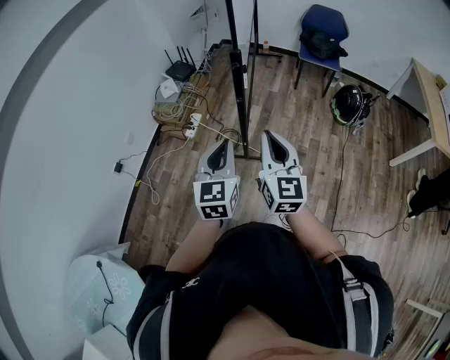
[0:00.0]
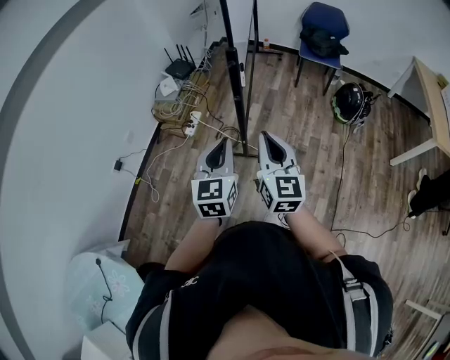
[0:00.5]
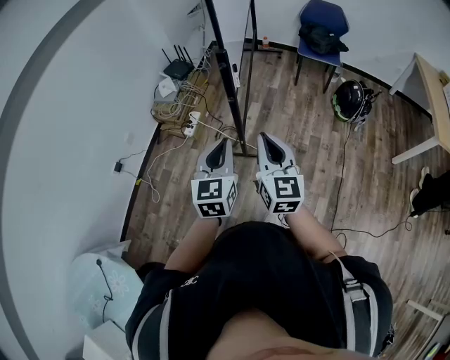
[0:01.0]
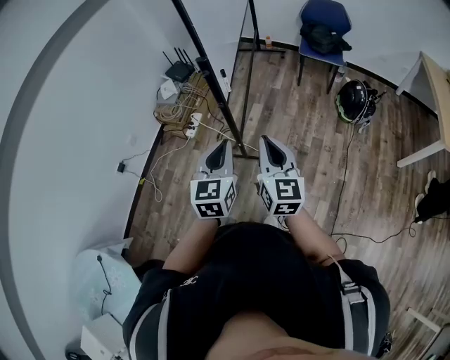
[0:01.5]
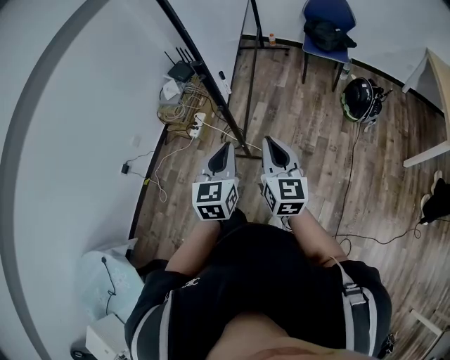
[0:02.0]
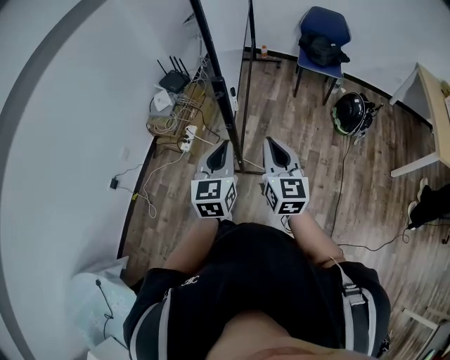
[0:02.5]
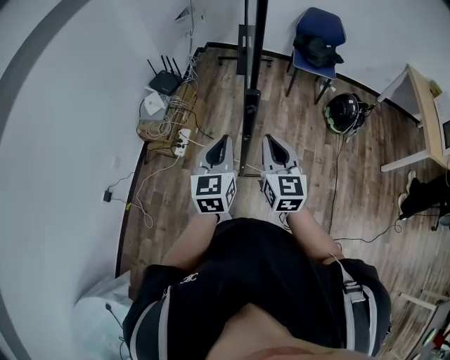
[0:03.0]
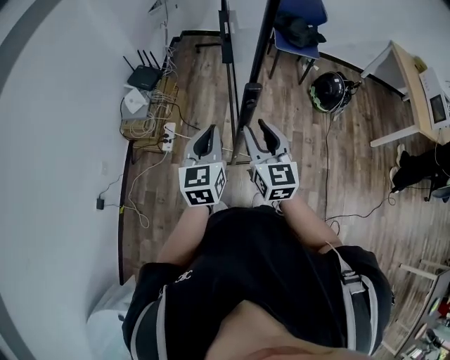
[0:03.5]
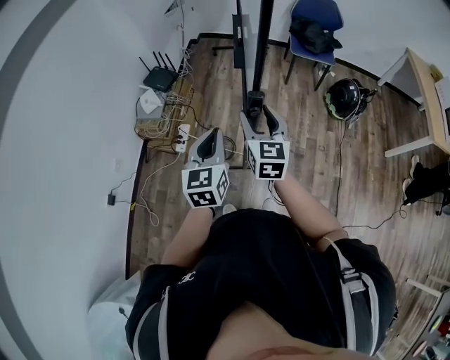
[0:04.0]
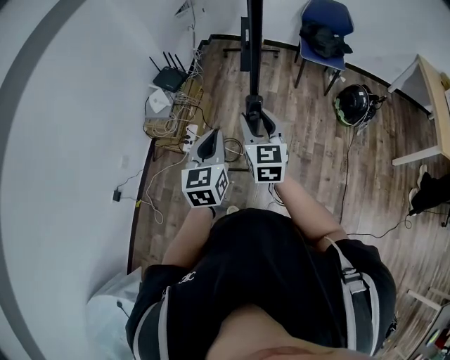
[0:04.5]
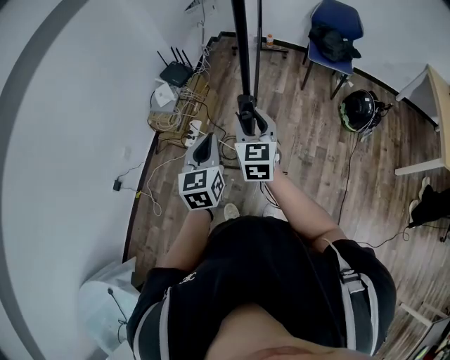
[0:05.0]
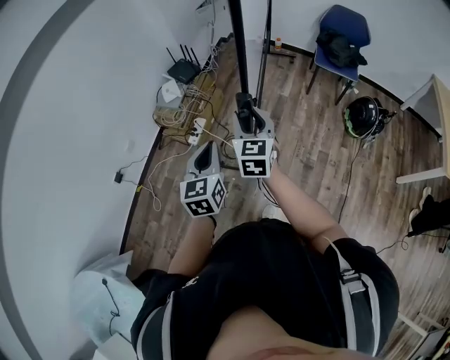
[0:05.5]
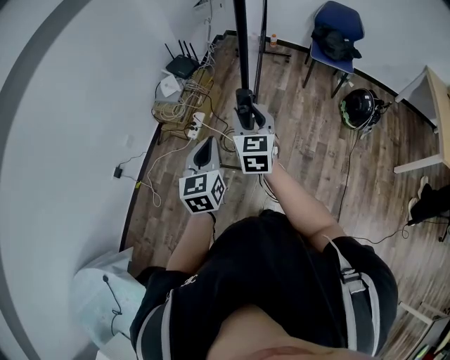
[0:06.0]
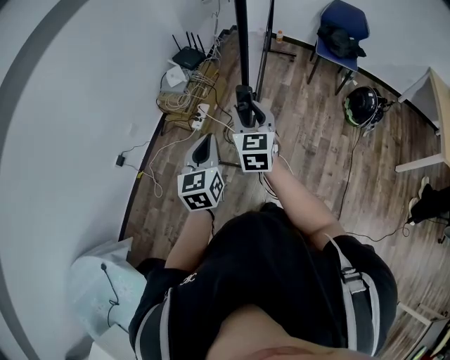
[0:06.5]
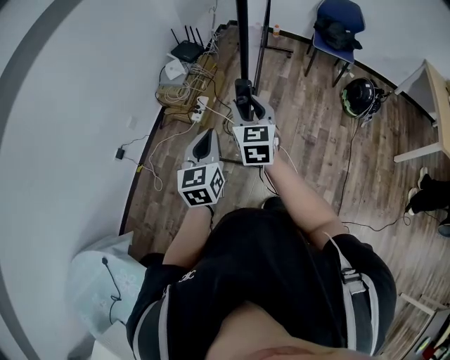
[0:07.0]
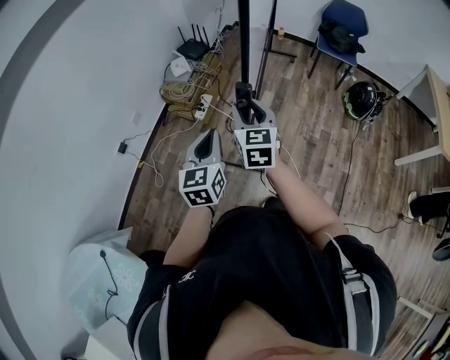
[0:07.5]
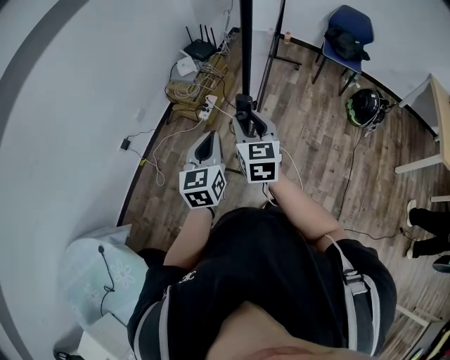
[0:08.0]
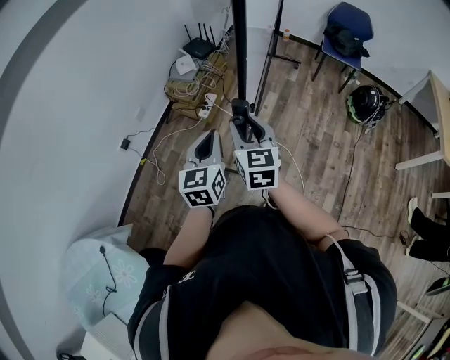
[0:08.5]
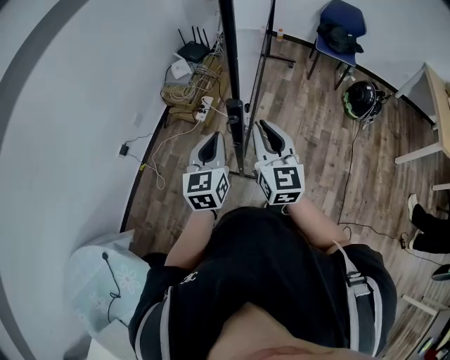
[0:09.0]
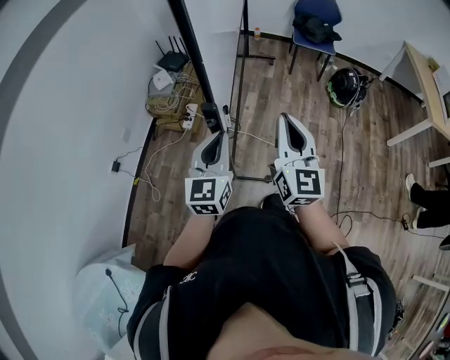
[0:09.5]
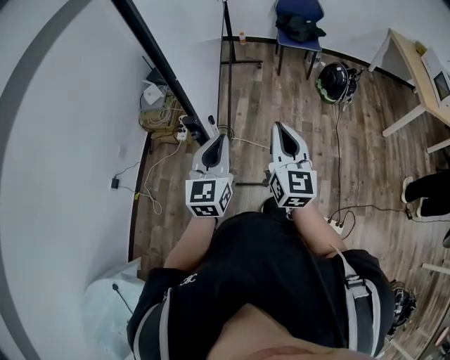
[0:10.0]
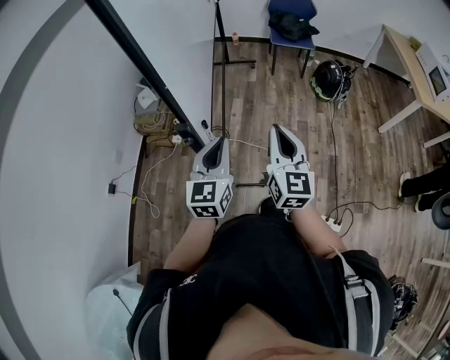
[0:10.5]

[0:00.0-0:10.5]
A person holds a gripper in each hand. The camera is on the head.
0:00.0 to 0:02.0: Both grippers travel together to the right, approximately 10 cm.
0:02.0 to 0:04.0: The grippers both shift forward and to the left by approximately 25 cm. The right gripper opens its fingers.
0:04.0 to 0:06.5: The left gripper heads backward, covering about 15 cm. The right gripper heads backward and to the left, covering approximately 15 cm.
0:06.5 to 0:08.5: The right gripper travels backward and to the left by roughly 15 cm. Meanwhile the left gripper is displaced backward and to the left by roughly 10 cm.
0:08.5 to 0:10.5: Both grippers move to the right, roughly 20 cm. The left gripper changes its angle by approximately 20 degrees. The right gripper turns by some 30 degrees, and closes up.

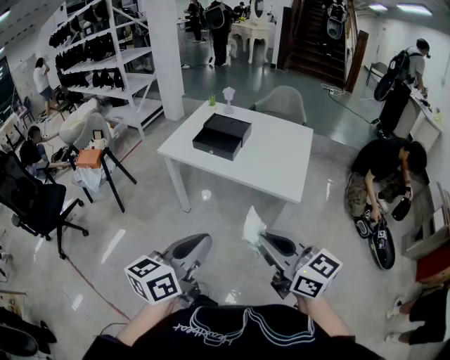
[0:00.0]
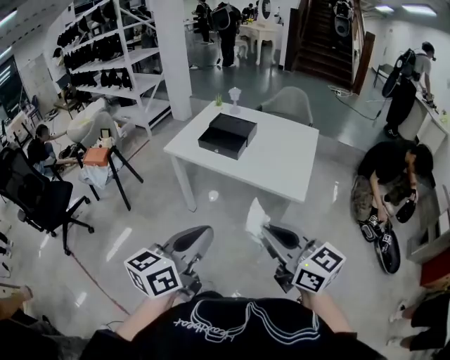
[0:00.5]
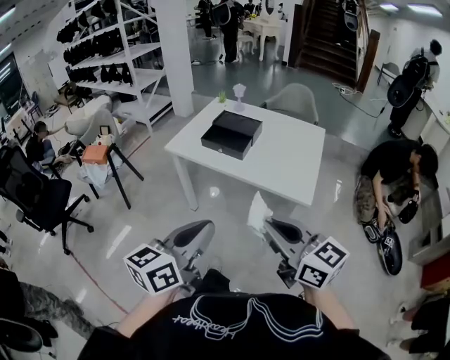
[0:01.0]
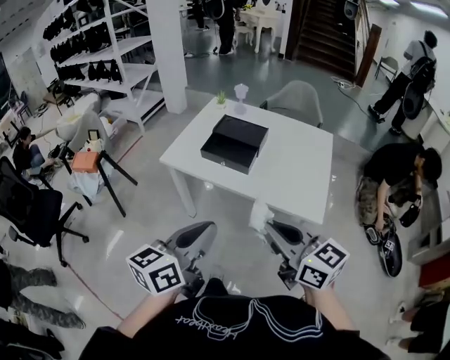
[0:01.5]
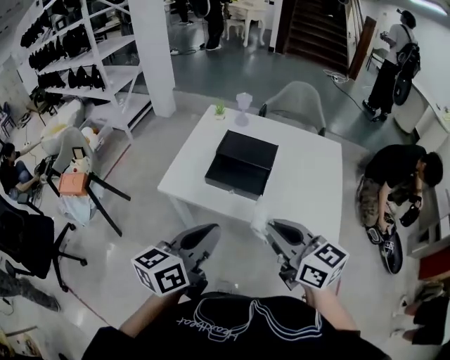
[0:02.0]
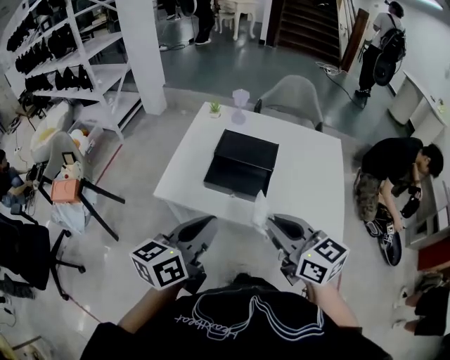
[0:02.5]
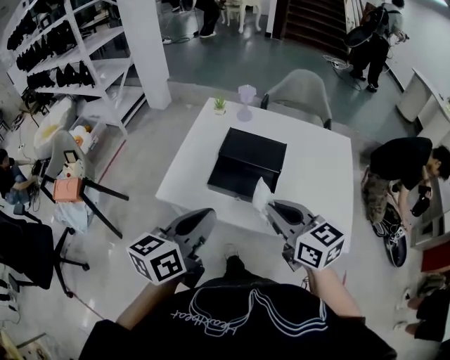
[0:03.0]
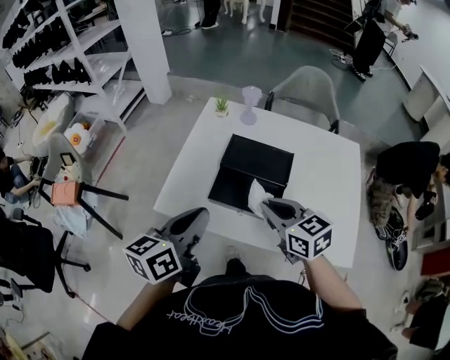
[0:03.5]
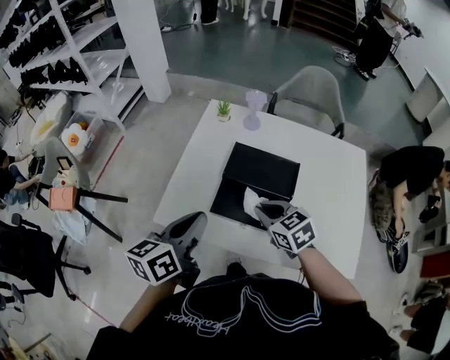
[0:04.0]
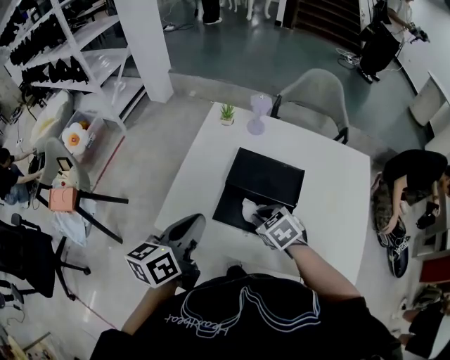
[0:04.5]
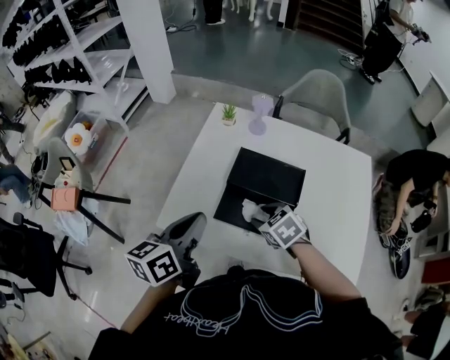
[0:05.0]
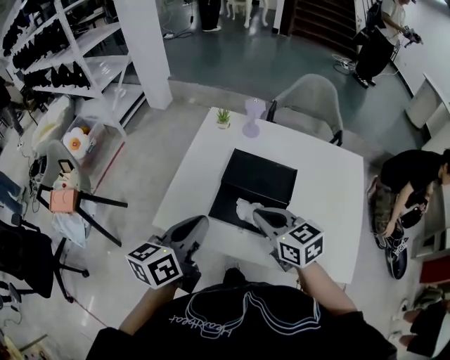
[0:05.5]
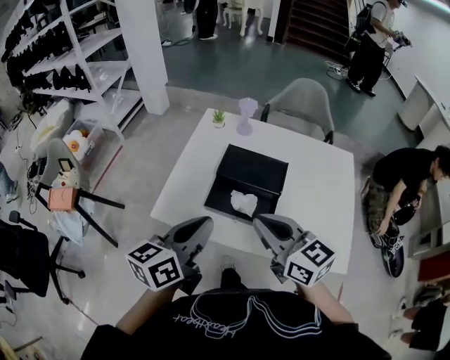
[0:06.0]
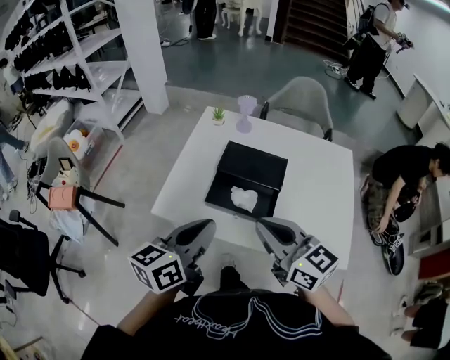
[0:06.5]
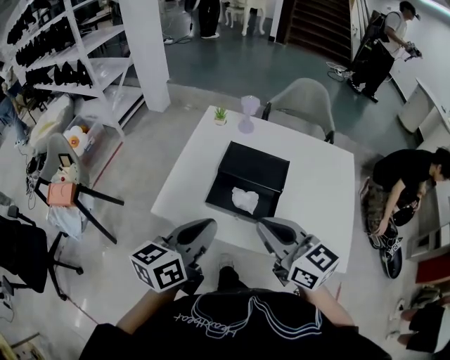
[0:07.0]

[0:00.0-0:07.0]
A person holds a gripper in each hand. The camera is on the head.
0:00.0 to 0:02.0: The grippers both shift forward by roughly 30 cm.
0:02.0 to 0:03.5: The right gripper heads forward and downward, covering some 20 cm; the left gripper is displaced forward by some 15 cm.
0:03.5 to 0:05.0: The left gripper shifts some 5 cm forward, while the right gripper moves downward and forward, some 15 cm, tips its fingers downward by roughly 30 degrees, and opens its fingers.
0:05.0 to 0:07.0: The left gripper shifts about 10 cm backward. Meanwhile the right gripper goes roughly 25 cm upward and backward, tips its fingers upward by some 50 degrees, and closes its fingers.

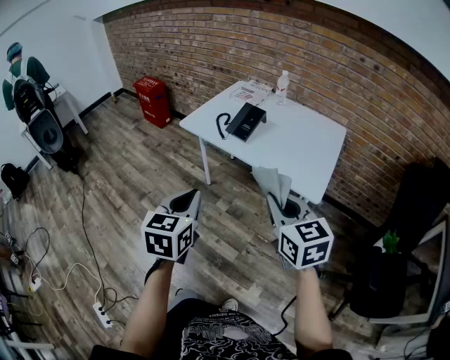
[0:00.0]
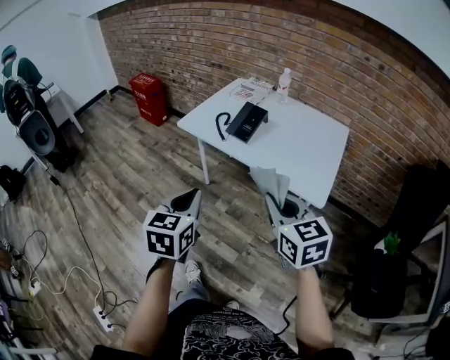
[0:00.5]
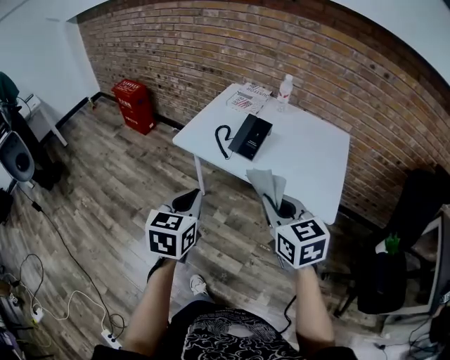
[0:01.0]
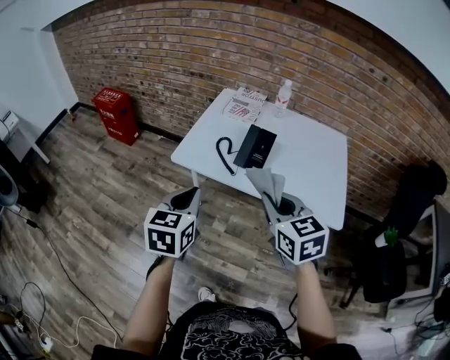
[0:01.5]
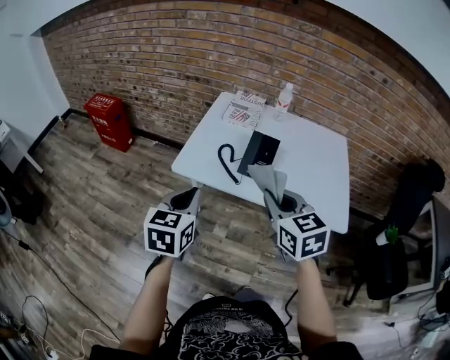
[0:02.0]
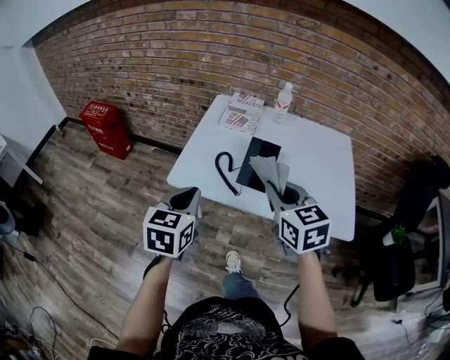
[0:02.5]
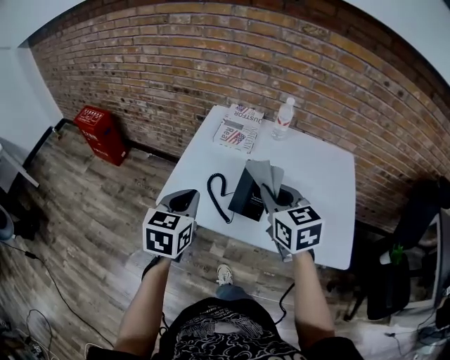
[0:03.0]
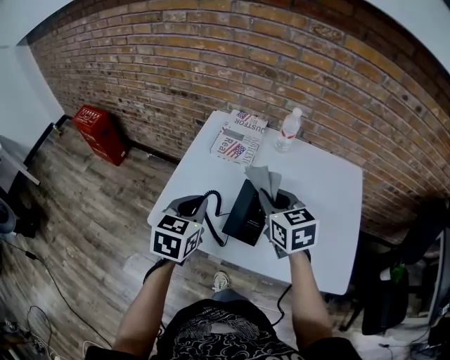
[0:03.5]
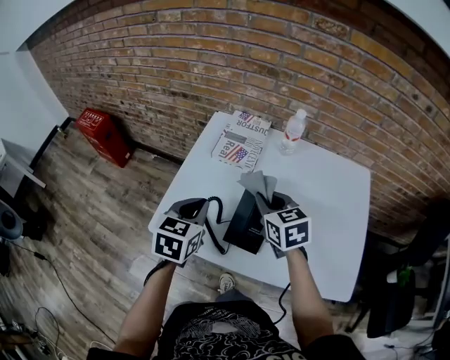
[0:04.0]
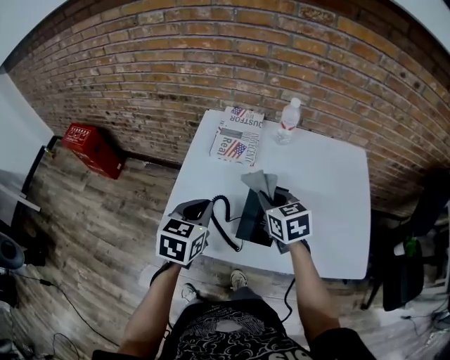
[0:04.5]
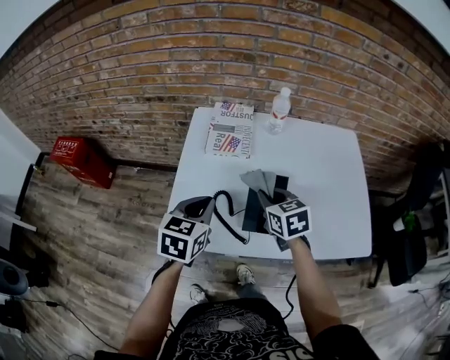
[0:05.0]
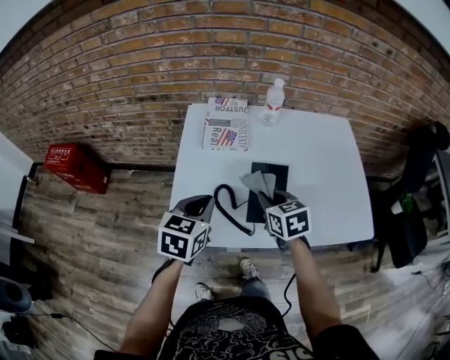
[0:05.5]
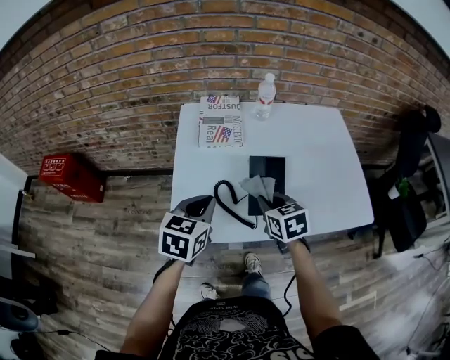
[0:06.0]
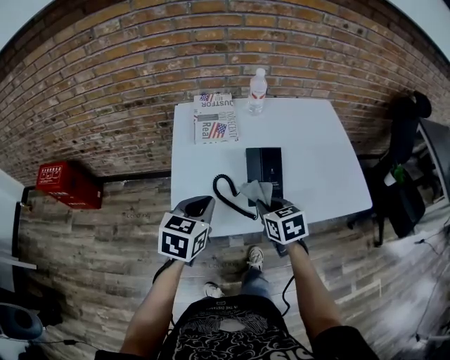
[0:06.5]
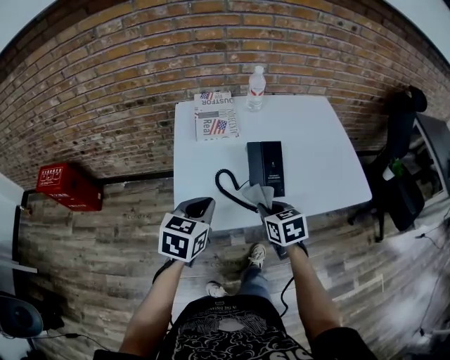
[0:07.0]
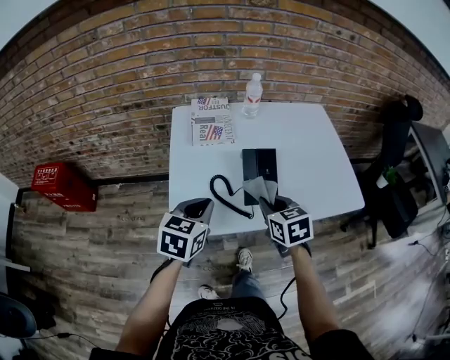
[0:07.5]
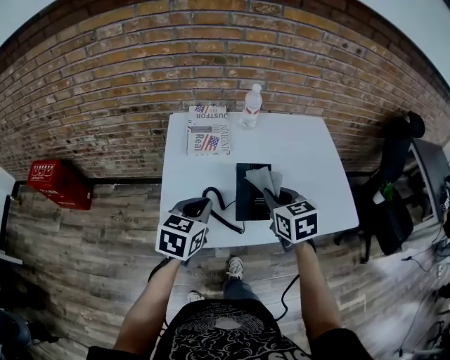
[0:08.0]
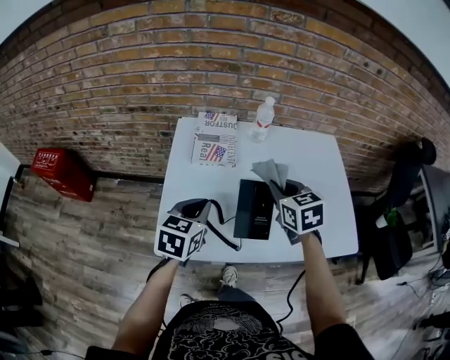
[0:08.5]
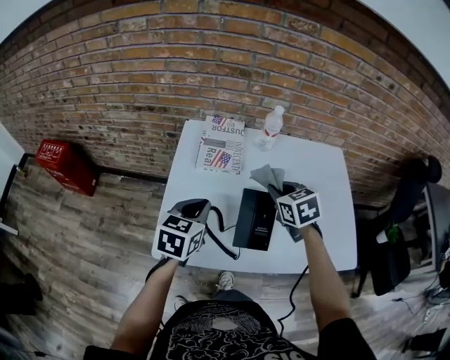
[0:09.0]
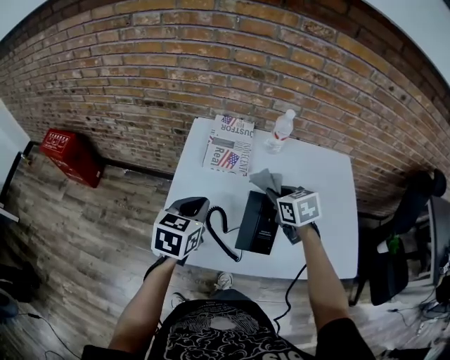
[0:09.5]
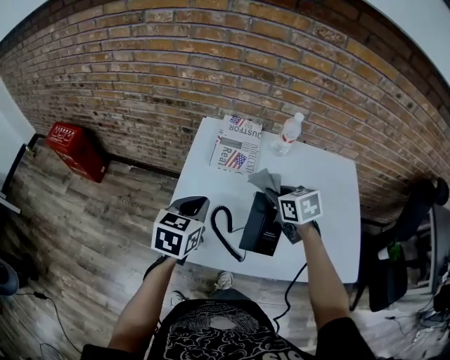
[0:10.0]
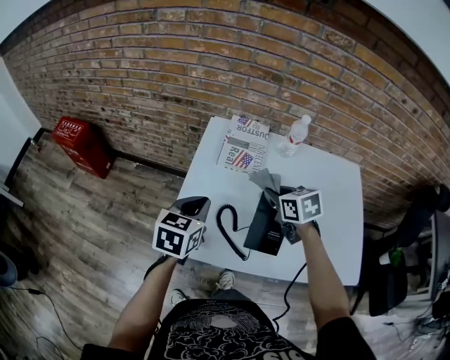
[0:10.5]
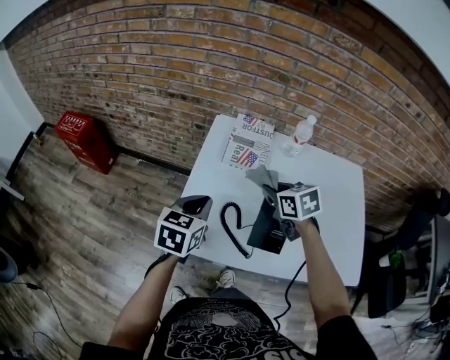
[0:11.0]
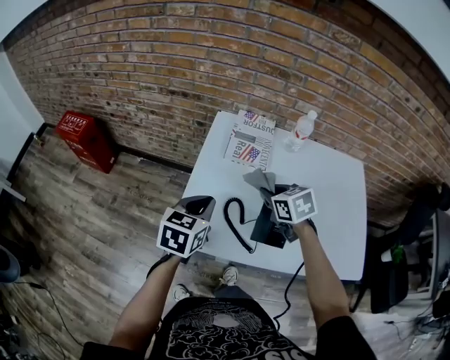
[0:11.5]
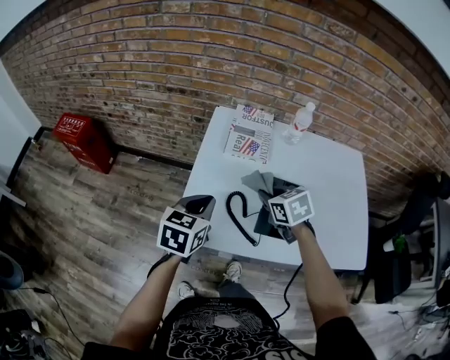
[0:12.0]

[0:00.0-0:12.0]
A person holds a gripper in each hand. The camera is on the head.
0:00.0 to 0:02.0: The two grippers go some 35 cm forward and to the left.
0:02.0 to 0:04.0: The grippers both shift forward by some 30 cm.
0:04.0 to 0:06.0: The right gripper goes roughly 10 cm backward and downward, and changes its angle by roughly 20 degrees. The left gripper changes place by about 5 cm, and swivels about 20 degrees.
0:06.0 to 0:08.0: The right gripper goes about 10 cm upward.
0:08.0 to 0:10.0: The left gripper goes about 5 cm forward. The right gripper heads forward, covering some 15 cm, and swivels approximately 20 degrees.
0:10.0 to 0:12.0: The left gripper shifts by about 5 cm. The right gripper is displaced to the left and backward by approximately 10 cm.
